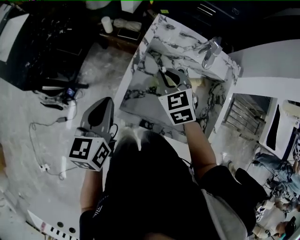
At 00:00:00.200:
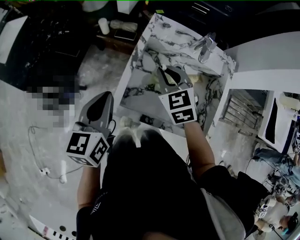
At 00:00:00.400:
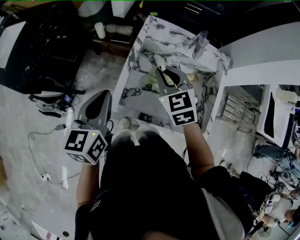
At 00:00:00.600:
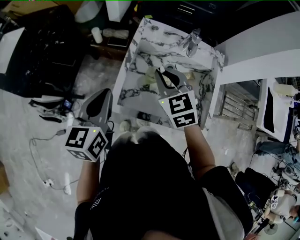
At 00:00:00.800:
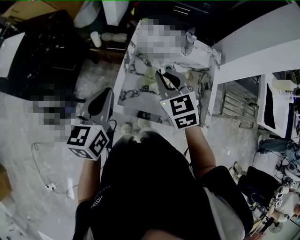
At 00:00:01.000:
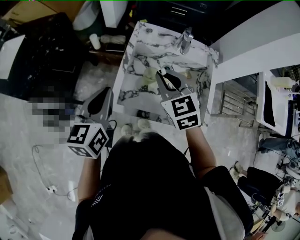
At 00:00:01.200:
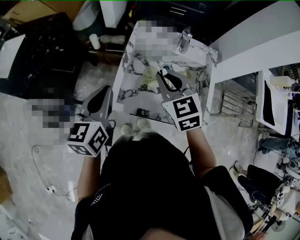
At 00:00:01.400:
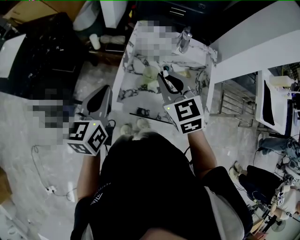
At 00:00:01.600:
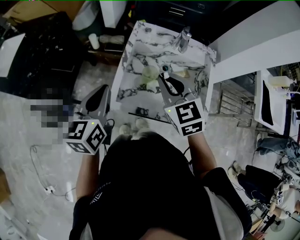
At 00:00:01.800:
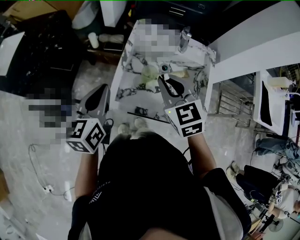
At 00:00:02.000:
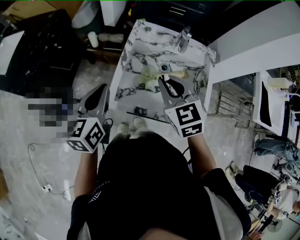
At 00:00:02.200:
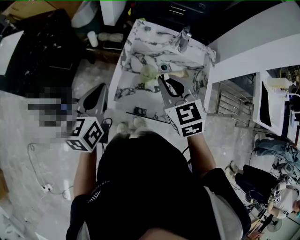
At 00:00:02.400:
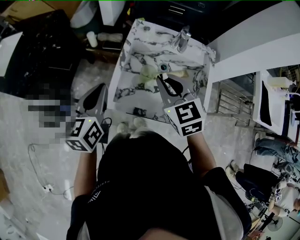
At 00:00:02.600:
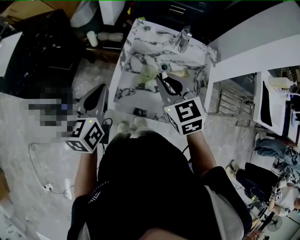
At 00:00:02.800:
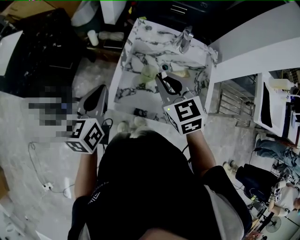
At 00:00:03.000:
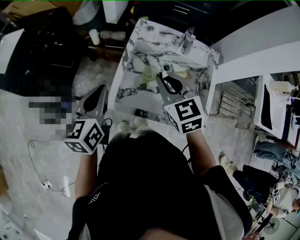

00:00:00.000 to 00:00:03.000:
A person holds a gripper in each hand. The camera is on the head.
00:00:00.000 to 00:00:01.600: The right gripper shifts approximately 15 cm upward and backward.
00:00:01.600 to 00:00:03.000: The grippers move only a little.

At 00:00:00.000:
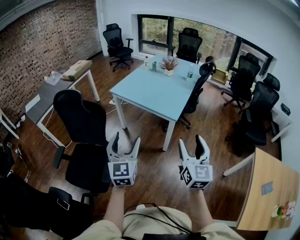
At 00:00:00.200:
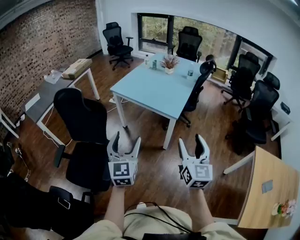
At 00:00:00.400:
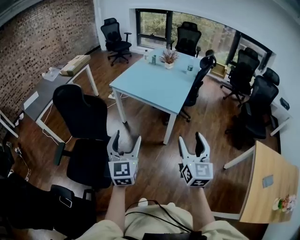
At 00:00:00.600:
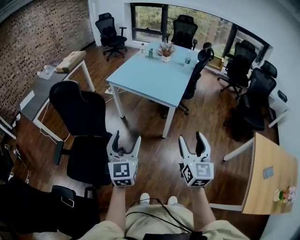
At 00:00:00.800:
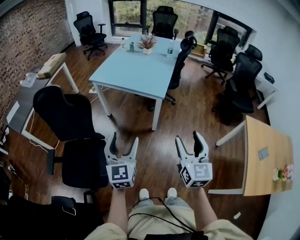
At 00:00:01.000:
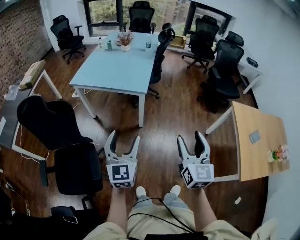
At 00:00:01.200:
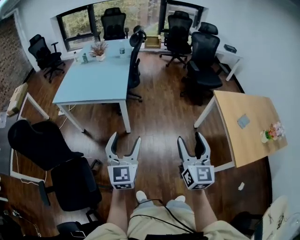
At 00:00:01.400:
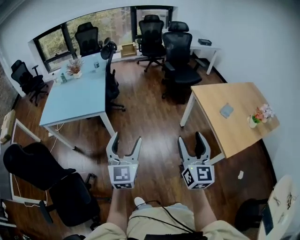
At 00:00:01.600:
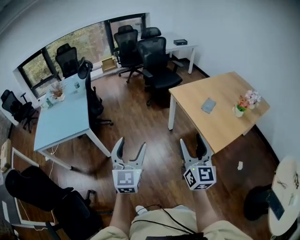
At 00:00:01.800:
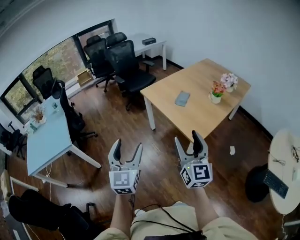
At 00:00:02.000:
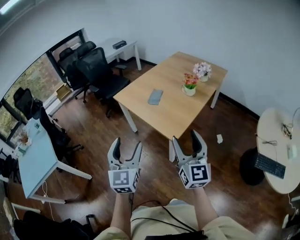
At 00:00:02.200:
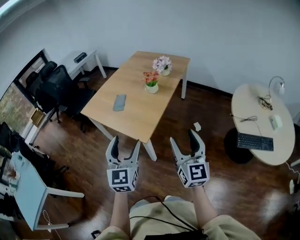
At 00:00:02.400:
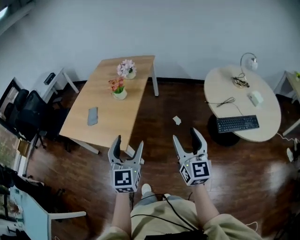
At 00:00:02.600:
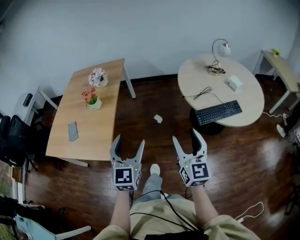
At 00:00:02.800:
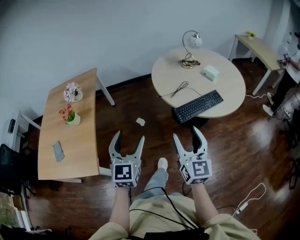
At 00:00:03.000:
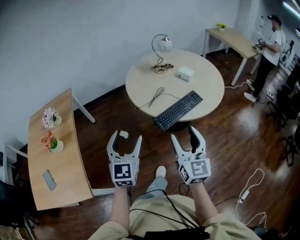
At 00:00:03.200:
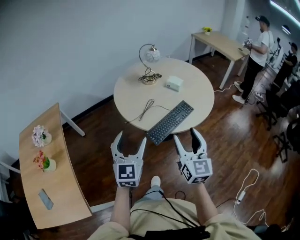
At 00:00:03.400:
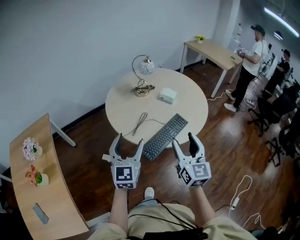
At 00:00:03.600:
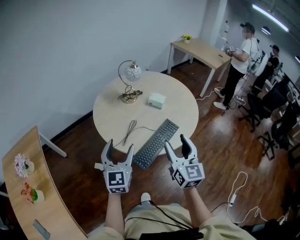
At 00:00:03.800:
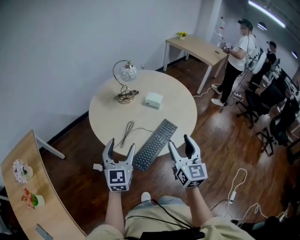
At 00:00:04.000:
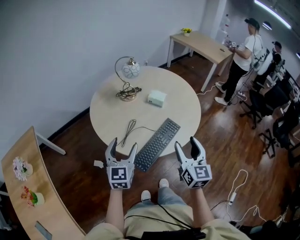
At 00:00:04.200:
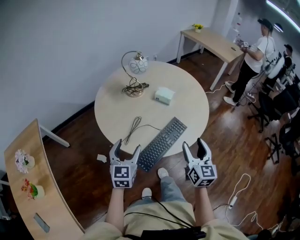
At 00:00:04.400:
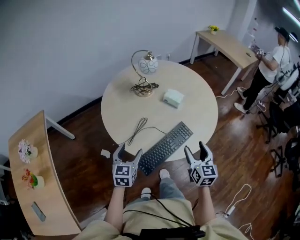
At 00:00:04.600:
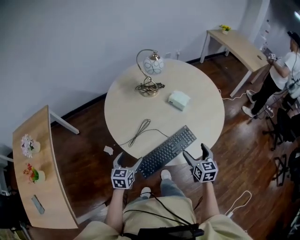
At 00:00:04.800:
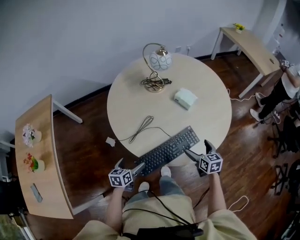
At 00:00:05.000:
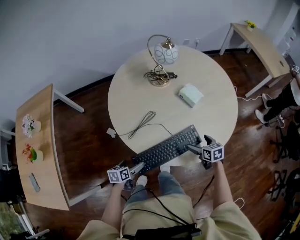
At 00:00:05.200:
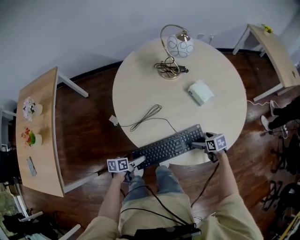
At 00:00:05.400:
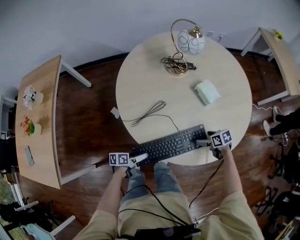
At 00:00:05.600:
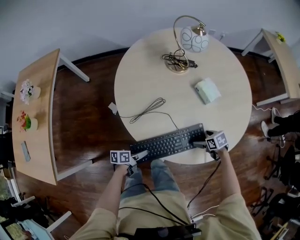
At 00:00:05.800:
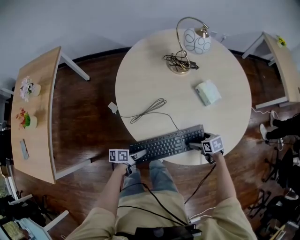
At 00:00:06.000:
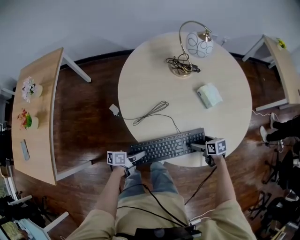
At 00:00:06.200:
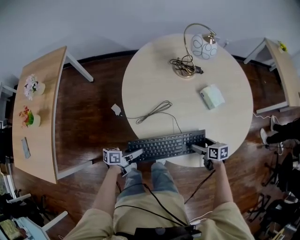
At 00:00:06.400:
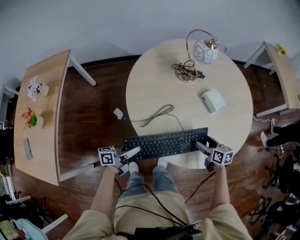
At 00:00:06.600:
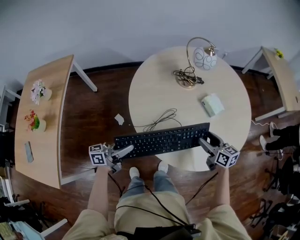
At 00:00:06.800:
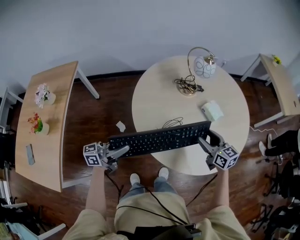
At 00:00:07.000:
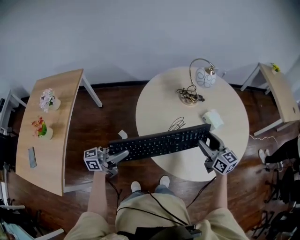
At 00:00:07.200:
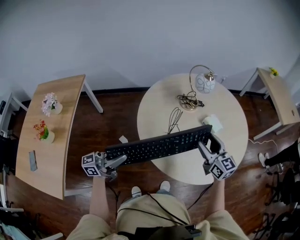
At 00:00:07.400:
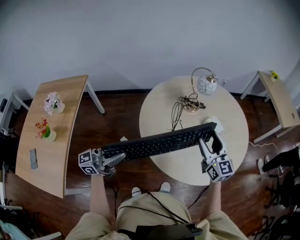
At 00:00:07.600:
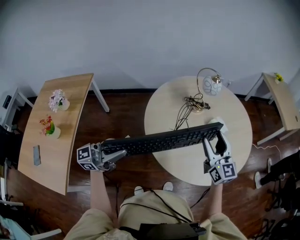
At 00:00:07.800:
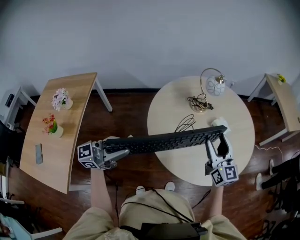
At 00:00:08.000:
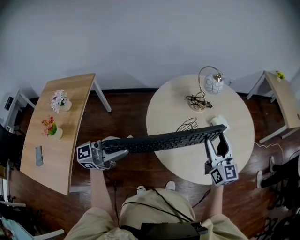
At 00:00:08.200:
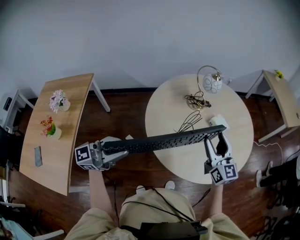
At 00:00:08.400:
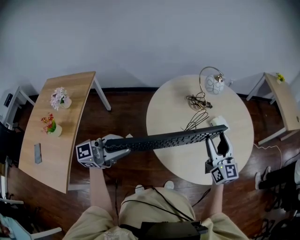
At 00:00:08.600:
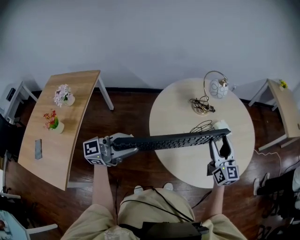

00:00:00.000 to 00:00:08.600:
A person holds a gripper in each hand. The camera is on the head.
00:00:00.000 to 00:00:01.400: The left gripper changes place by some 30 cm, and swivels some 40 degrees, while the right gripper ends up about 30 cm from where it was, and rotates roughly 40 degrees.
00:00:01.400 to 00:00:02.800: The pair of grippers is taken approximately 90 cm. The right gripper turns by some 90 degrees. Meanwhile the left gripper rotates some 90 degrees.
00:00:02.800 to 00:00:04.400: Both grippers are carried roughly 40 cm. The left gripper changes its angle by about 30 degrees. Meanwhile the right gripper changes its angle by approximately 30 degrees.
00:00:04.400 to 00:00:05.800: The grippers both shift downward by about 25 cm. The right gripper tilts its fingers roughly 50 degrees downward, and opens up. Meanwhile the left gripper twists about 70 degrees counterclockwise, seen from behind, and opens and closes again.
00:00:05.800 to 00:00:07.200: The two grippers go some 35 cm upward. The right gripper angles its fingers upward, by some 60 degrees, and closes its fingers. The left gripper points its fingers about 50 degrees further upward.
00:00:07.200 to 00:00:08.600: The left gripper shifts some 10 cm upward, and changes its angle by about 30 degrees.
